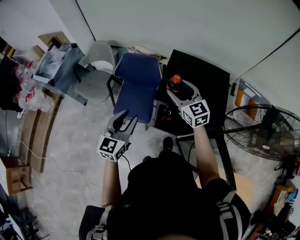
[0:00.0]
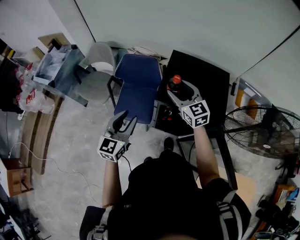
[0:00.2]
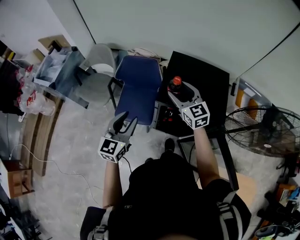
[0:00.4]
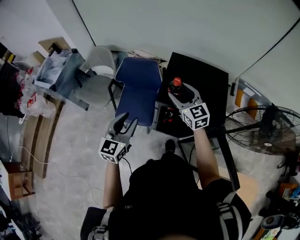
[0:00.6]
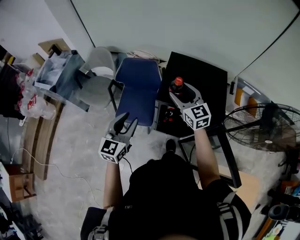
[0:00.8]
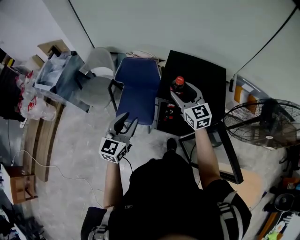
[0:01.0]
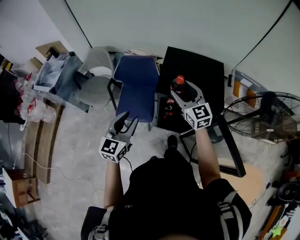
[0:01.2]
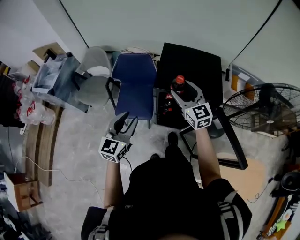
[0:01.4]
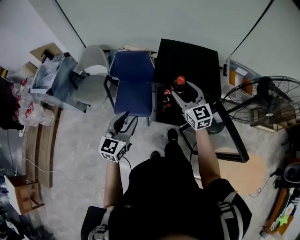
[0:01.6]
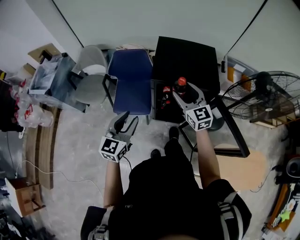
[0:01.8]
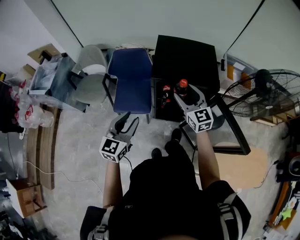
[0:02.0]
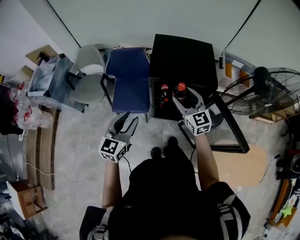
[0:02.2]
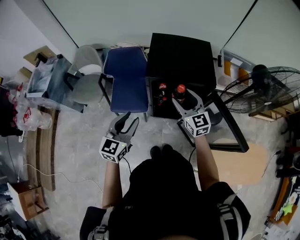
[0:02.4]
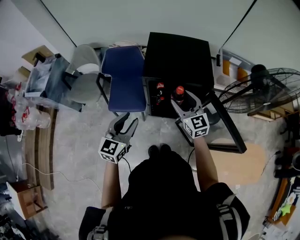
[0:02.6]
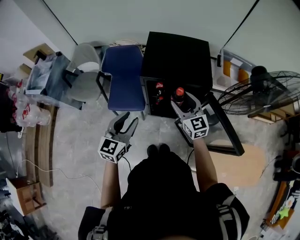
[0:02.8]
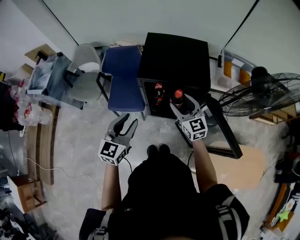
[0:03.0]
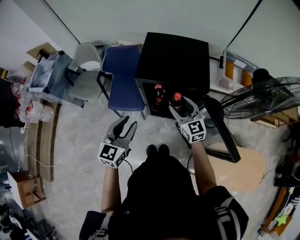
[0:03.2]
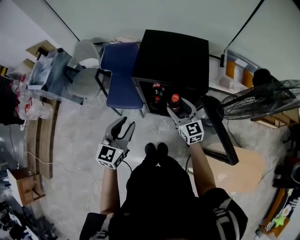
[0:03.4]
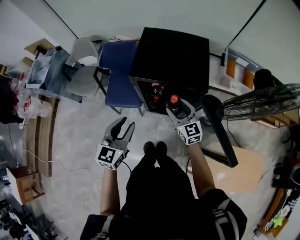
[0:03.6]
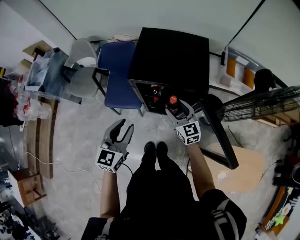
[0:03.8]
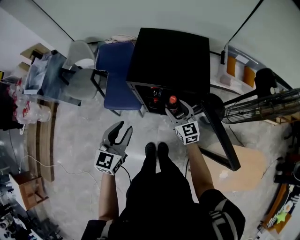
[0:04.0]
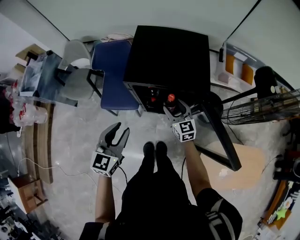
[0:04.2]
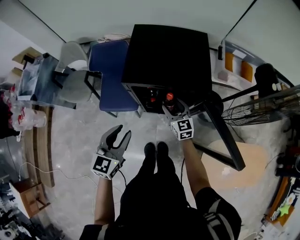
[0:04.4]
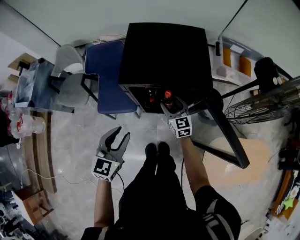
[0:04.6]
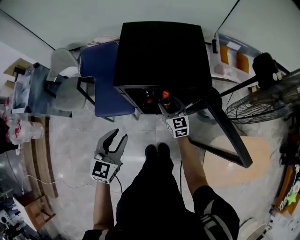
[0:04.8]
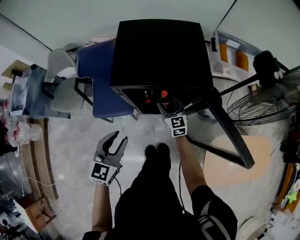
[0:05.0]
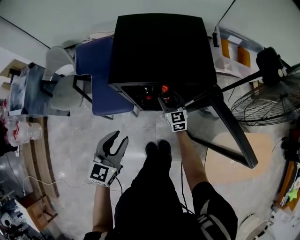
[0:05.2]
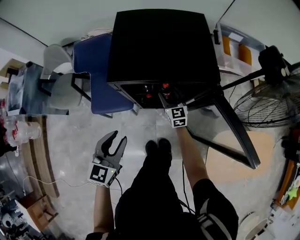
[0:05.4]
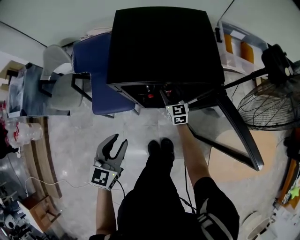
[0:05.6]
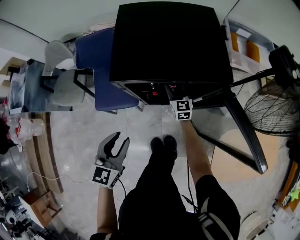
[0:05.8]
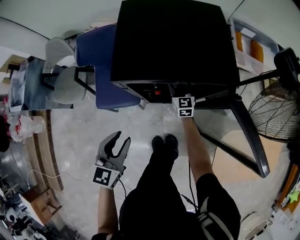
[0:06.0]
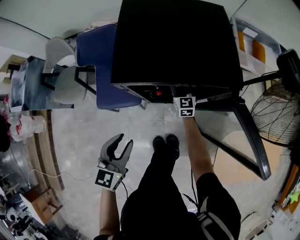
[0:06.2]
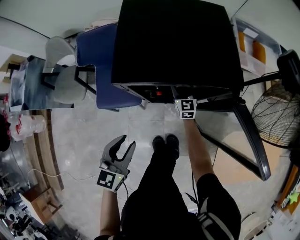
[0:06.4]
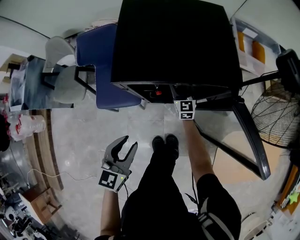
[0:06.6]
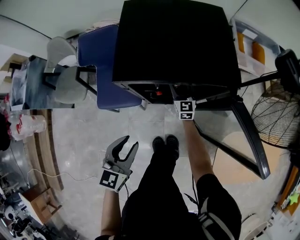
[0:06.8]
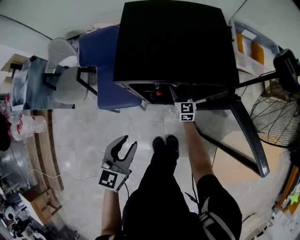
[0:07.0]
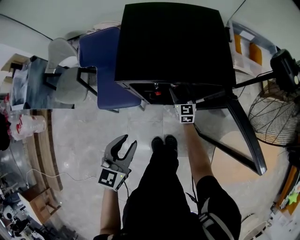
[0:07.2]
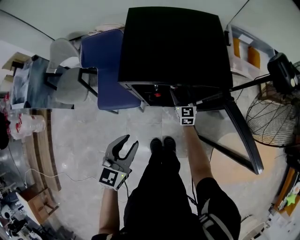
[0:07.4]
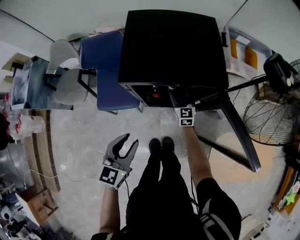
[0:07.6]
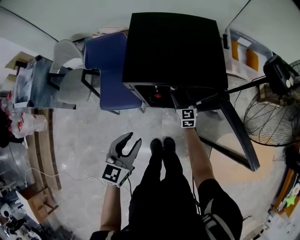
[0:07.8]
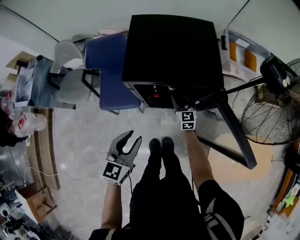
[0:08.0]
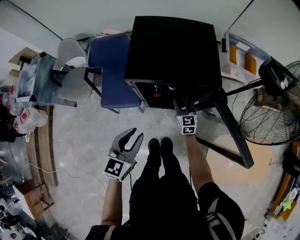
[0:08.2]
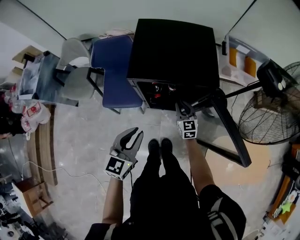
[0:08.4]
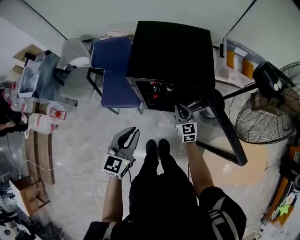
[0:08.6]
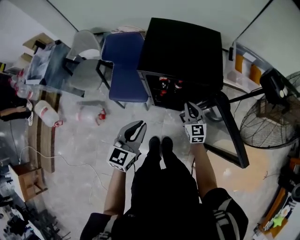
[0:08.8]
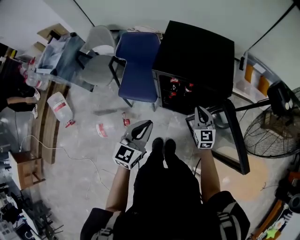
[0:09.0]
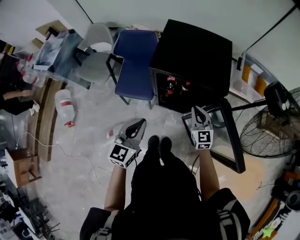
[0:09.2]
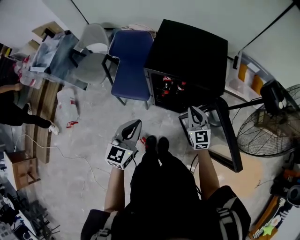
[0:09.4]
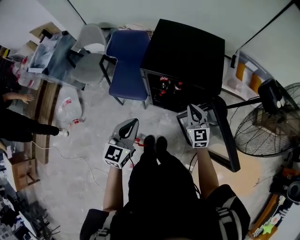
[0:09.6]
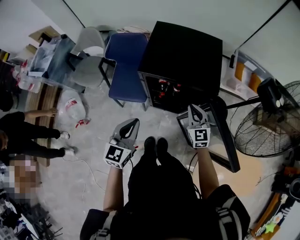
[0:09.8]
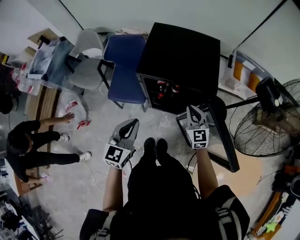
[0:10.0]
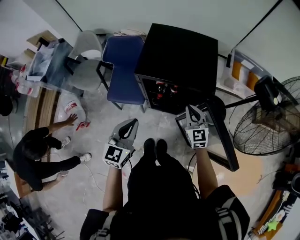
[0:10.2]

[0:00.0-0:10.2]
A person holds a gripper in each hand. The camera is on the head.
0:00.0 to 0:01.4: The grippers both shift backward by roughly 5 cm.
0:01.4 to 0:03.0: The right gripper moves backward, to the right and downward, roughly 15 cm. Meanwhile the left gripper heads to the right, covering some 5 cm.
0:03.0 to 0:04.4: The left gripper moves downward, some 5 cm. The right gripper moves downward, about 15 cm.
0:04.4 to 0:05.8: The right gripper is displaced downward and forward by some 15 cm; the left gripper moves downward, some 10 cm.
0:05.8 to 0:07.2: The grippers move only a little.
0:07.2 to 0:08.8: The left gripper goes approximately 10 cm upward, and closes up; the right gripper moves upward and backward, some 20 cm, and closes its fingers.
0:08.8 to 0:10.2: The right gripper travels upward by approximately 5 cm.

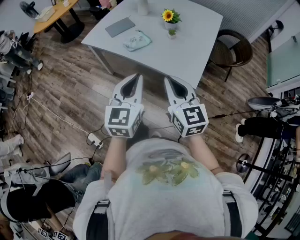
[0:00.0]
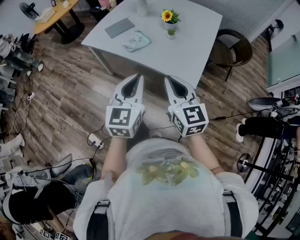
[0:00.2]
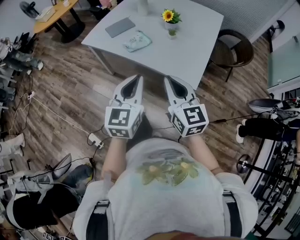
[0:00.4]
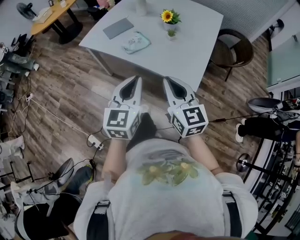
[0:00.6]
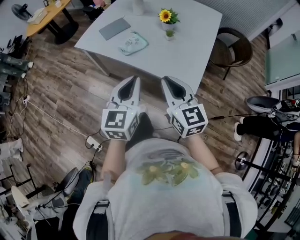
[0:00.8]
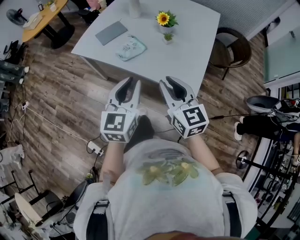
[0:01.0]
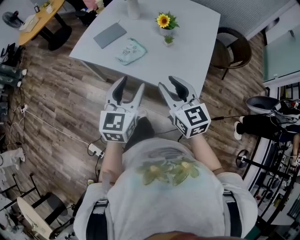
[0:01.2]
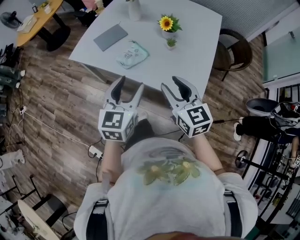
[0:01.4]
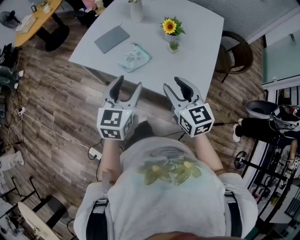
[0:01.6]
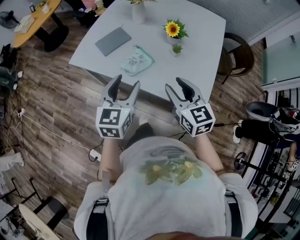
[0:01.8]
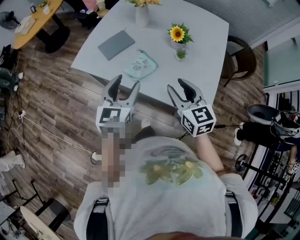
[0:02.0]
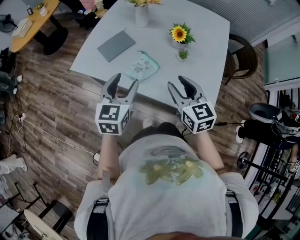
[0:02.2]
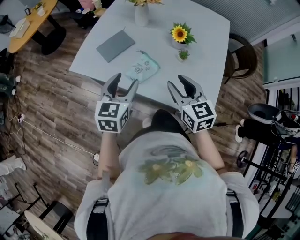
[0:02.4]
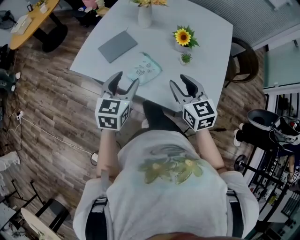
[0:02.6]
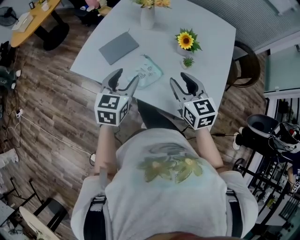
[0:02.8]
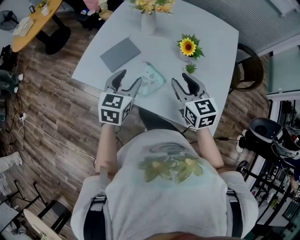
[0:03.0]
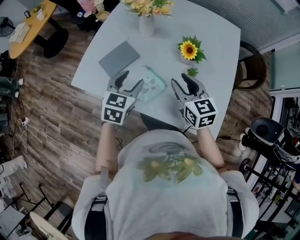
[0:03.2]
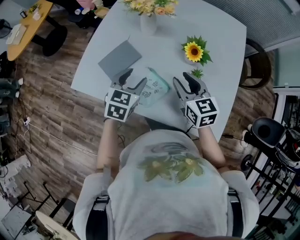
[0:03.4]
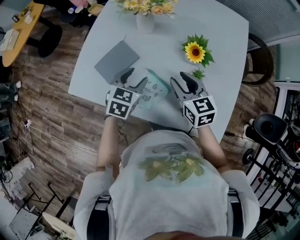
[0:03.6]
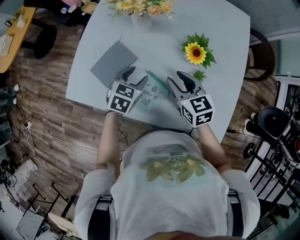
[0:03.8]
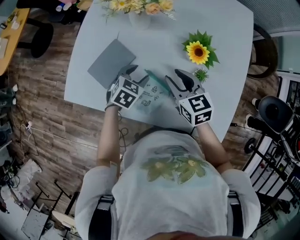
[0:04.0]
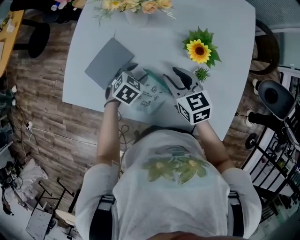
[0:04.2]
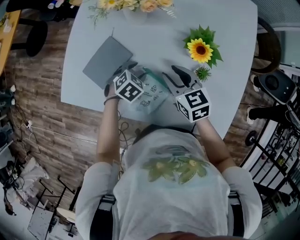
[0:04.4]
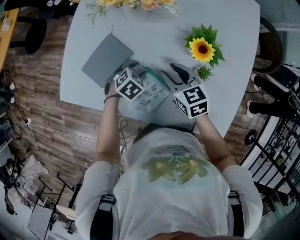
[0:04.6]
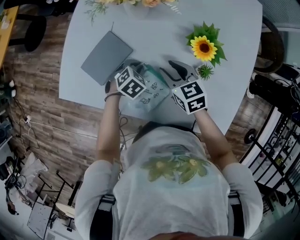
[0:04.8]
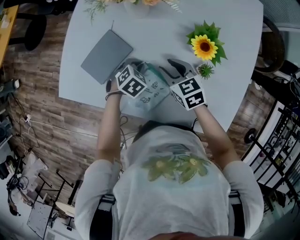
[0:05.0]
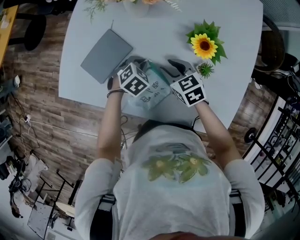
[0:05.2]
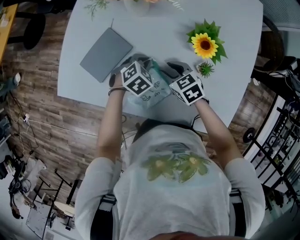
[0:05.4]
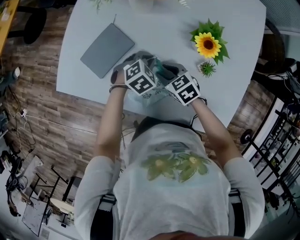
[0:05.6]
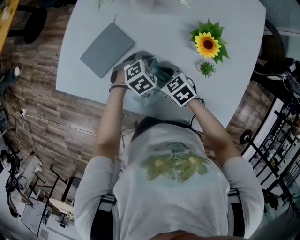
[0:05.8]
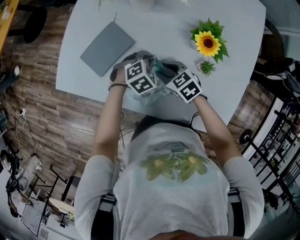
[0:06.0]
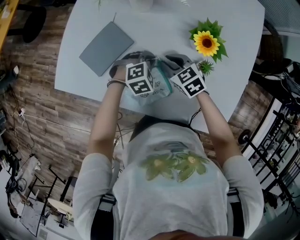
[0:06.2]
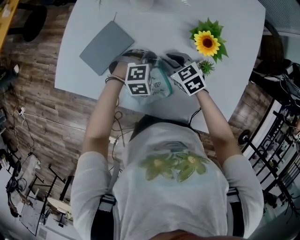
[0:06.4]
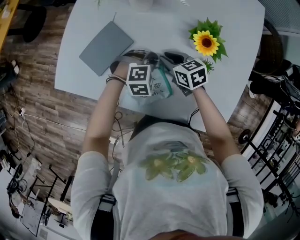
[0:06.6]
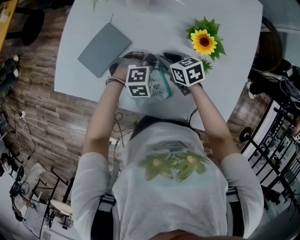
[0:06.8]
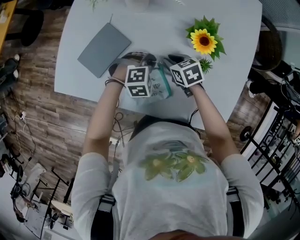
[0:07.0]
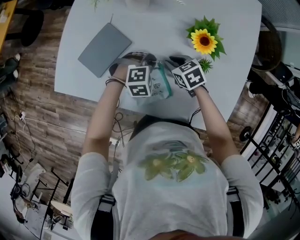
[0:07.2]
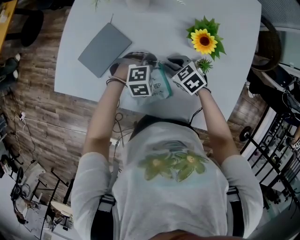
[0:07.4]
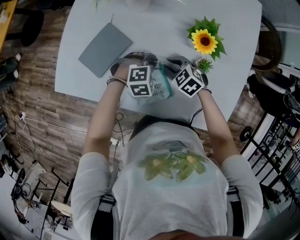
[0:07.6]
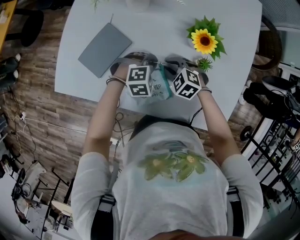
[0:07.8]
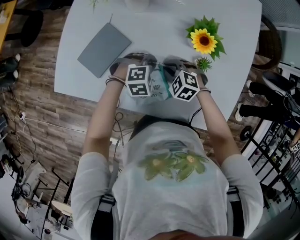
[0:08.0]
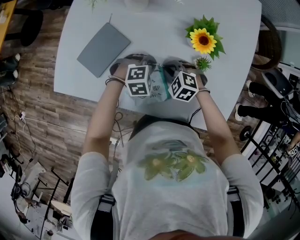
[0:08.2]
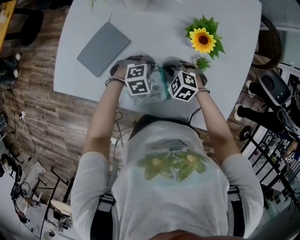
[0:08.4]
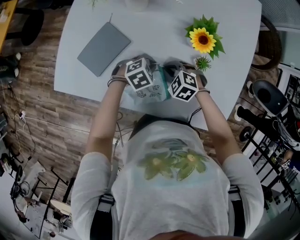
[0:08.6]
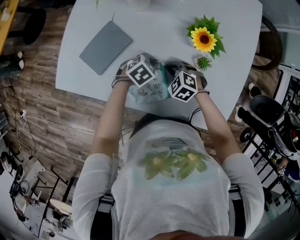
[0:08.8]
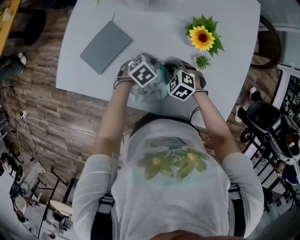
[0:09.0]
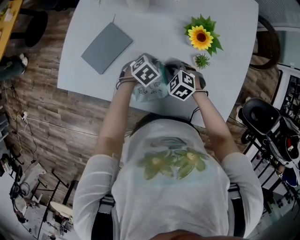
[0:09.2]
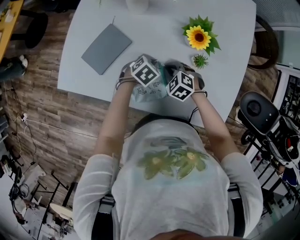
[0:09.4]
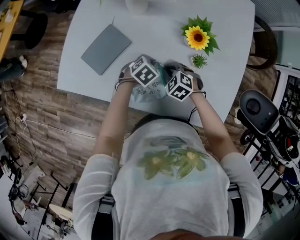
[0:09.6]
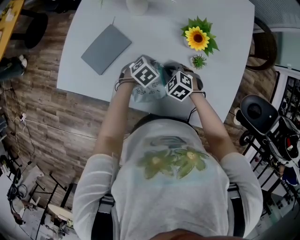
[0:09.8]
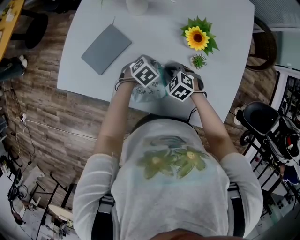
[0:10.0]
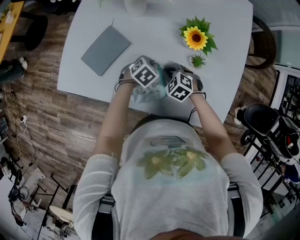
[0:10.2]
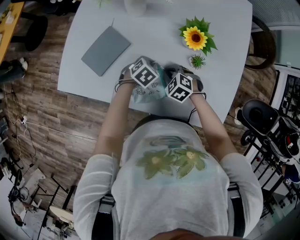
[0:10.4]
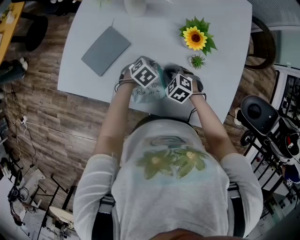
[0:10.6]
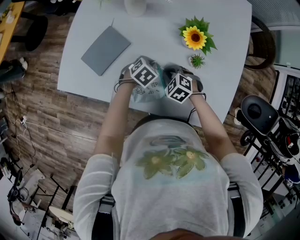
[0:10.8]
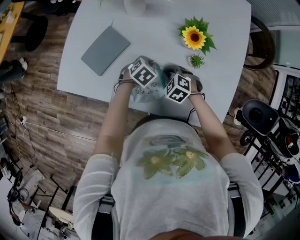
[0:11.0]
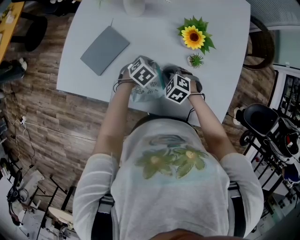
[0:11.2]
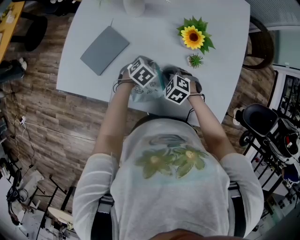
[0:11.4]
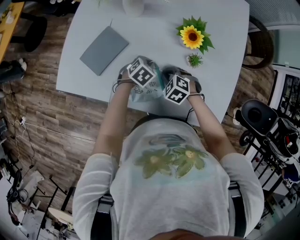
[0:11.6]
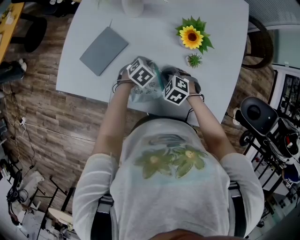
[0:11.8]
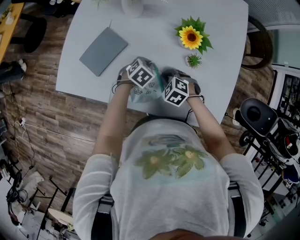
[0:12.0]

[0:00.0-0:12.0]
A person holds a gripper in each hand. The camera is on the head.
0:00.0 to 0:01.6: Both grippers move forward, roughly 20 cm. The right gripper opens its fingers. The left gripper opens.
0:01.6 to 0:03.0: The two grippers go about 20 cm forward.
0:03.0 to 0:04.4: The left gripper shifts roughly 30 cm downward and forward, and points its fingers some 40 degrees further downward, while the right gripper goes approximately 20 cm forward and downward.
0:04.4 to 0:06.0: The left gripper closes, while the right gripper goes roughly 10 cm downward, and swivels roughly 30 degrees.
0:06.0 to 0:07.6: The left gripper turns by approximately 30 degrees.
0:07.6 to 0:09.0: The left gripper rotates some 40 degrees.
0:09.0 to 0:12.0: The grippers move only a little.

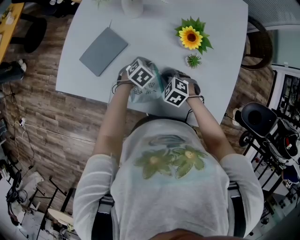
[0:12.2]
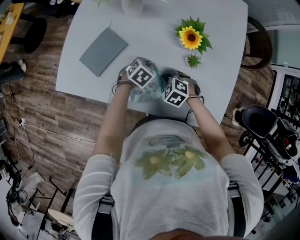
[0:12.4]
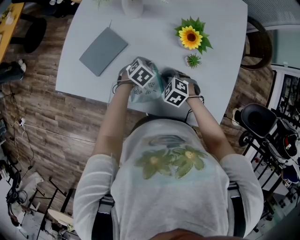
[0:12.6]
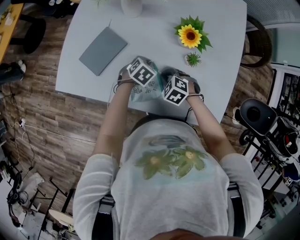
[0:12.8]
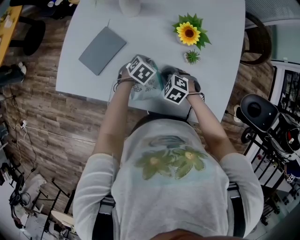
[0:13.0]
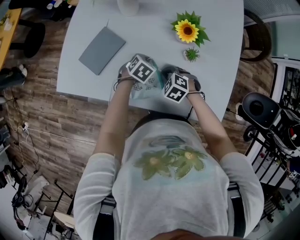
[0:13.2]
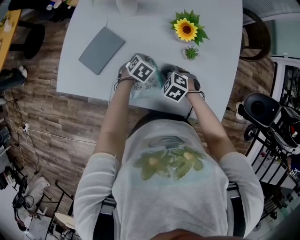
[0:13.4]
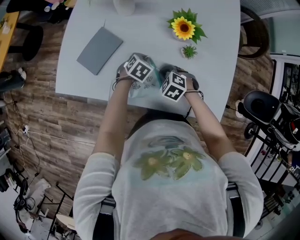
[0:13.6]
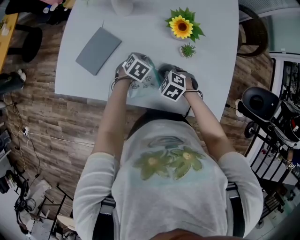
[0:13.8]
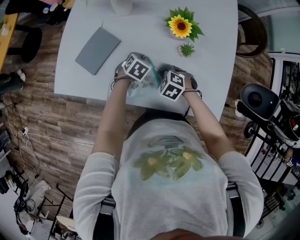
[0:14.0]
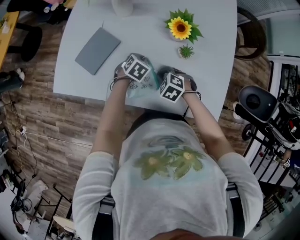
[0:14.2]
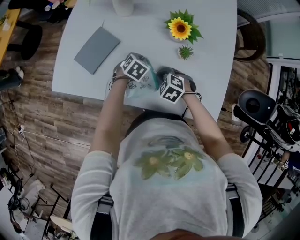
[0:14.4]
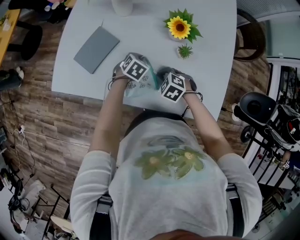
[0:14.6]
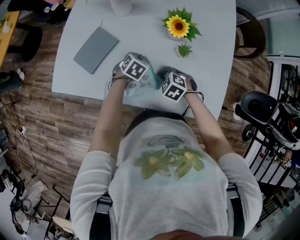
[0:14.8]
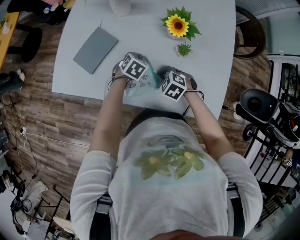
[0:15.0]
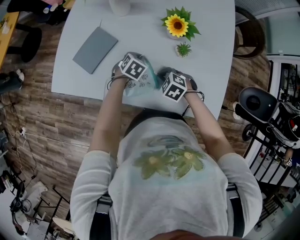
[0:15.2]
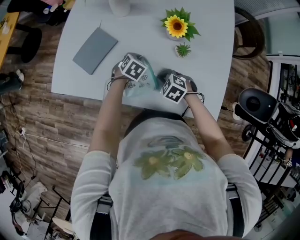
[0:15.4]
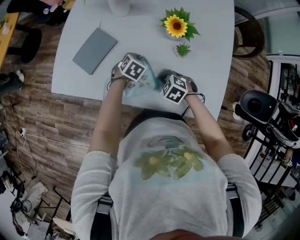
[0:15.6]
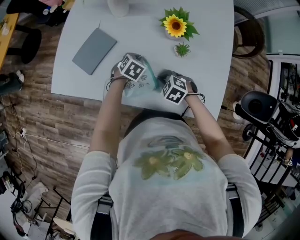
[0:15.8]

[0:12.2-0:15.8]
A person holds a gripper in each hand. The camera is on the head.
0:12.2 to 0:15.8: The grippers move only a little.
